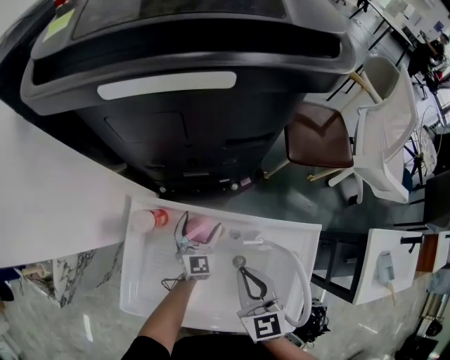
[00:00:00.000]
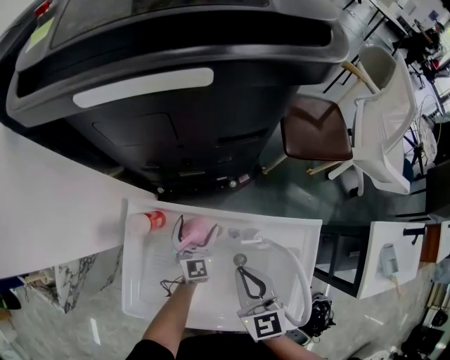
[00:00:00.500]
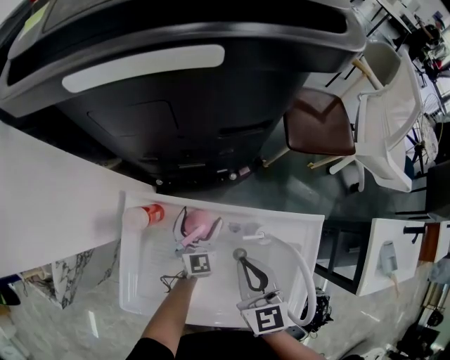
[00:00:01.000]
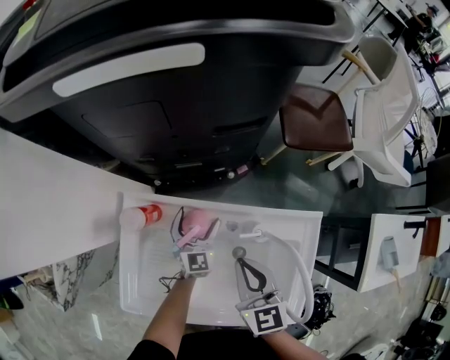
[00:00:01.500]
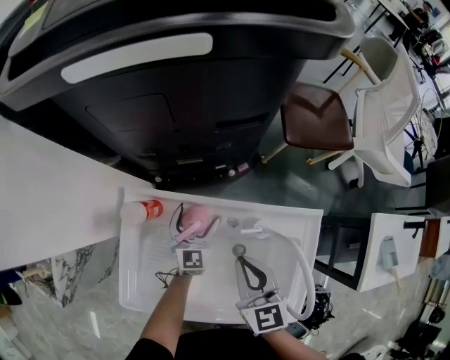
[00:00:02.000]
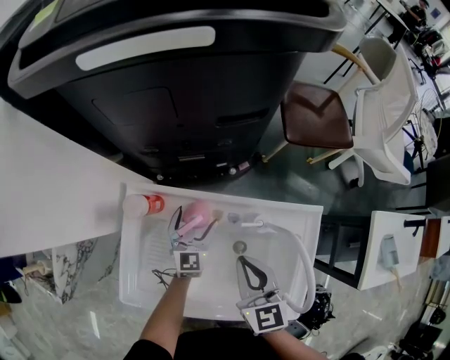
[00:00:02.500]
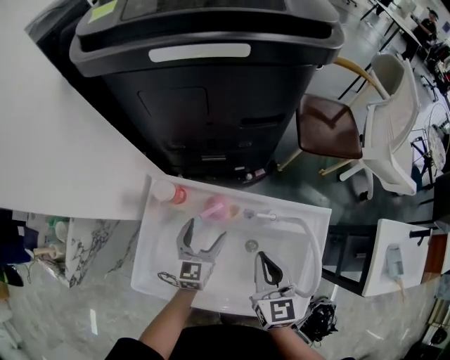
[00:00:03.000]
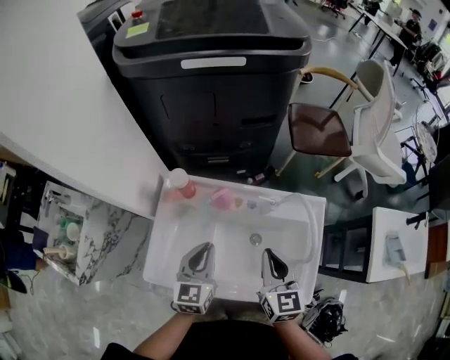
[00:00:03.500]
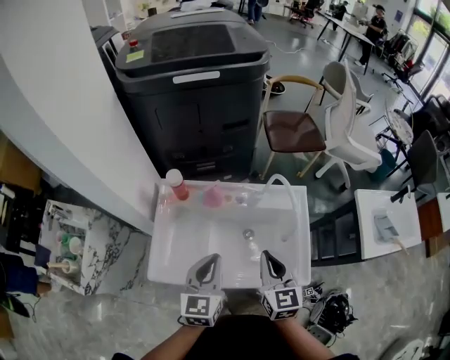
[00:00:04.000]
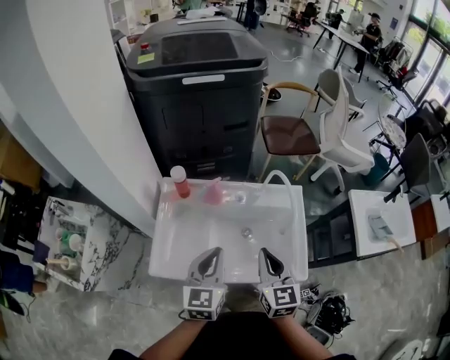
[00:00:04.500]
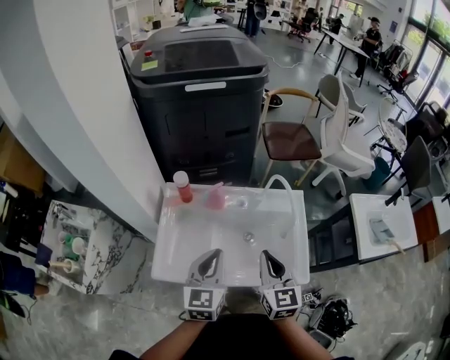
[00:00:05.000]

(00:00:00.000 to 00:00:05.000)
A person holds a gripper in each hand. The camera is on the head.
00:00:00.000 - 00:00:02.500: The grippers move only a little.
00:00:02.500 - 00:00:05.000: The right gripper goes approximately 25 cm backward and upward, while the left gripper heads backward and upward, covering roughly 40 cm, and closes its fingers.

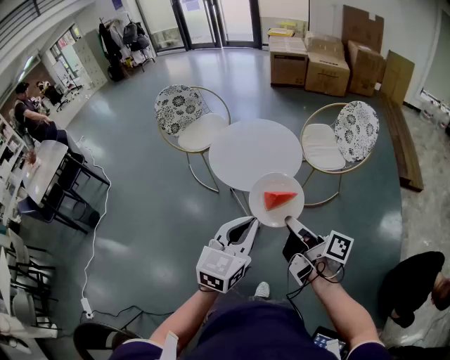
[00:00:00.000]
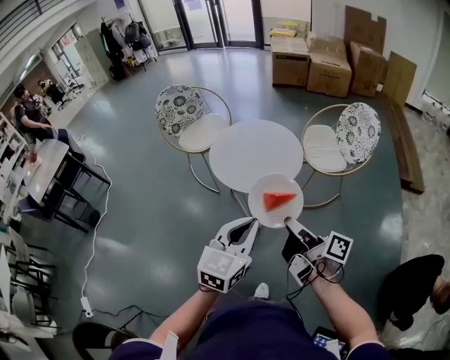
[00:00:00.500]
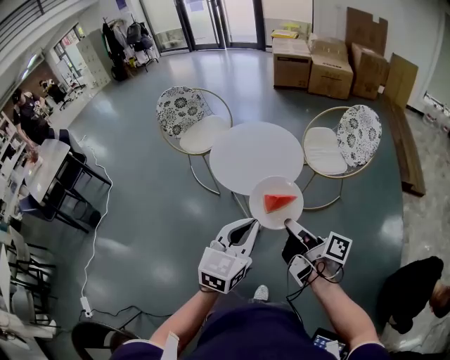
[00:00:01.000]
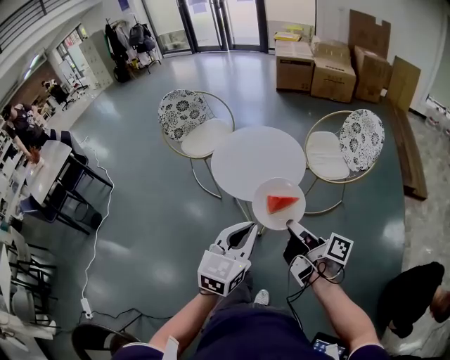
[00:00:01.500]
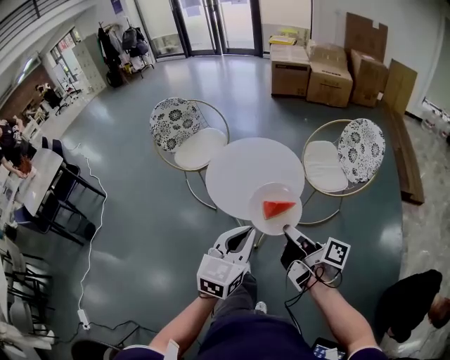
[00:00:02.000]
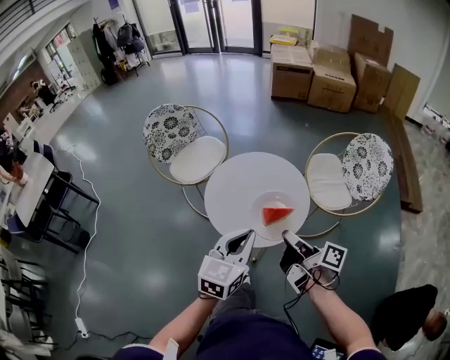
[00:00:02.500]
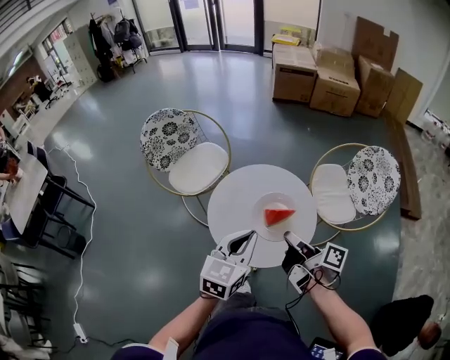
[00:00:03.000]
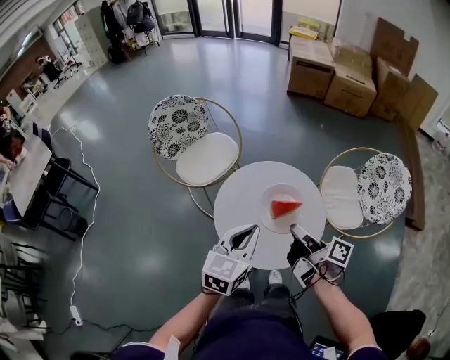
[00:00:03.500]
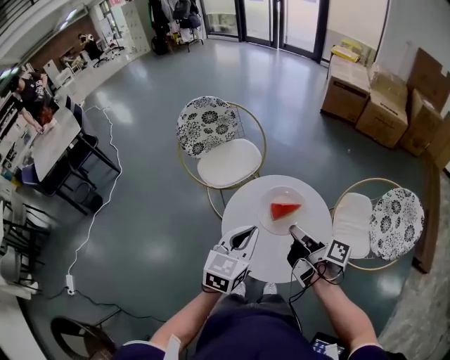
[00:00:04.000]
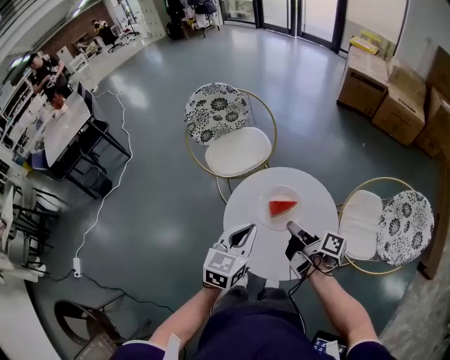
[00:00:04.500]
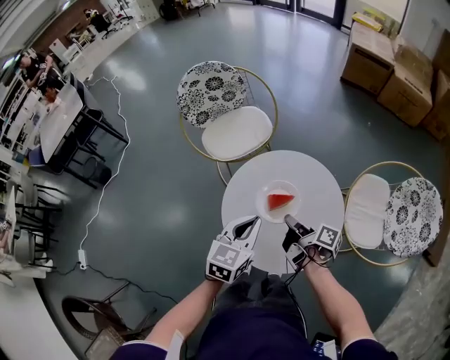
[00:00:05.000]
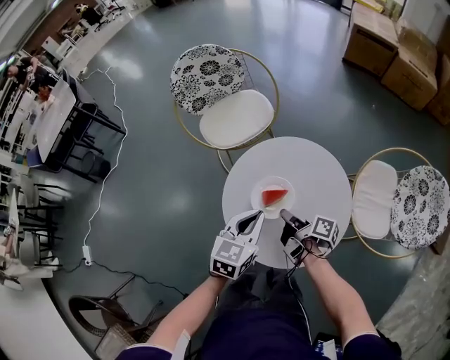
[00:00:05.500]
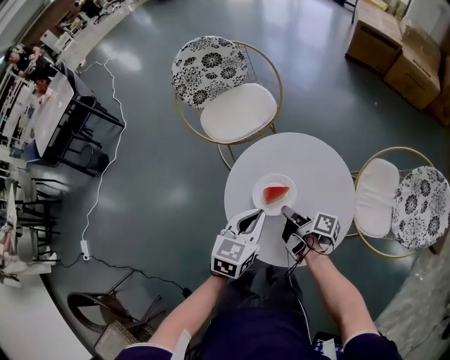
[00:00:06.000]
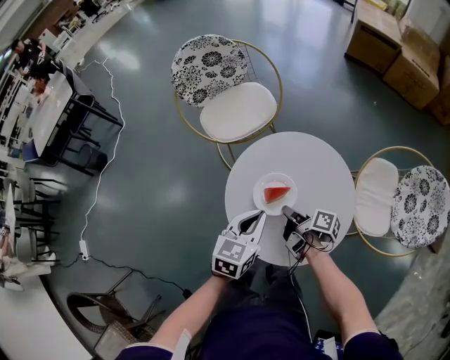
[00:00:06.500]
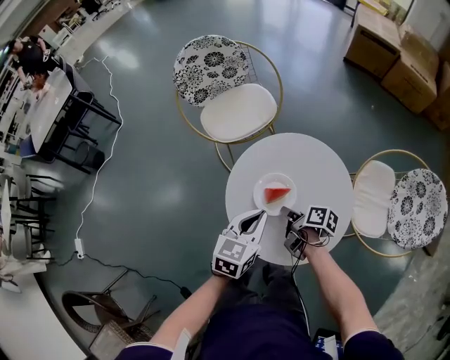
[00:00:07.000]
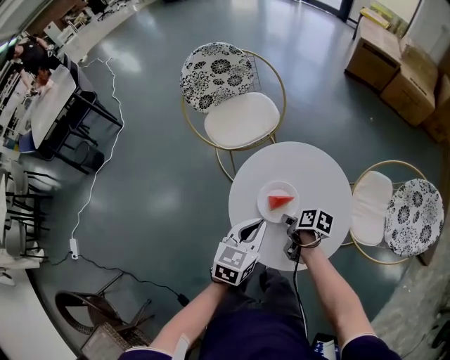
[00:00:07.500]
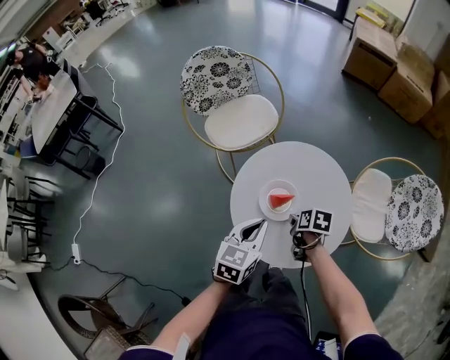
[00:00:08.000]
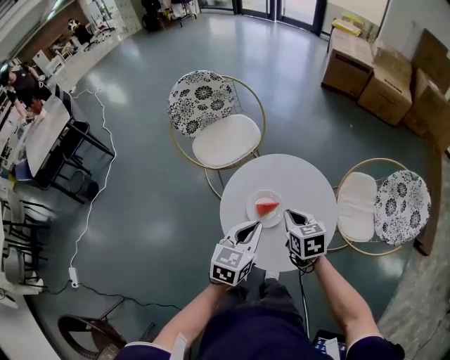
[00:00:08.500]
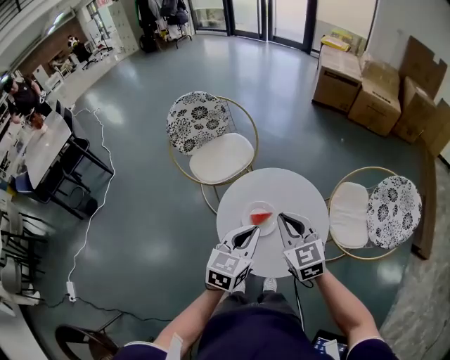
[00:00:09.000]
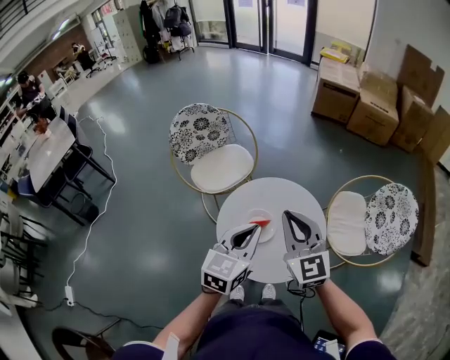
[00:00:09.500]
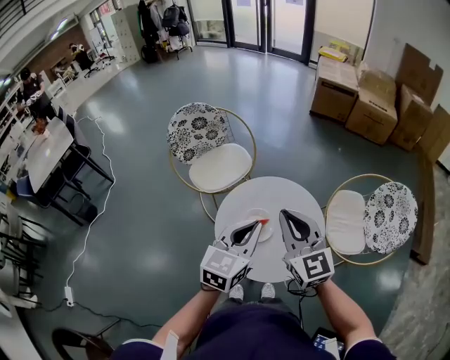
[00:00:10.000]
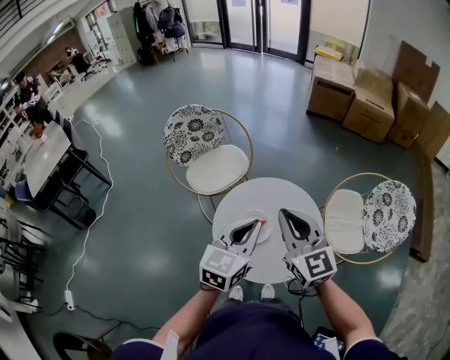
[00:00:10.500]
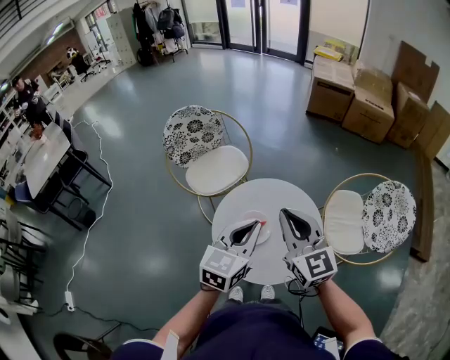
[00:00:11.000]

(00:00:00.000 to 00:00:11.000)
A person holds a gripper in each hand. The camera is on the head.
00:00:00.000 - 00:00:02.000: The left gripper changes place by some 10 cm.
00:00:02.000 - 00:00:03.500: The left gripper moves some 25 cm.
00:00:03.500 - 00:00:05.500: The left gripper travels downward by about 10 cm.
00:00:07.500 - 00:00:09.000: The left gripper heads upward, covering about 10 cm.
00:00:09.000 - 00:00:11.000: The left gripper moves upward, approximately 5 cm.

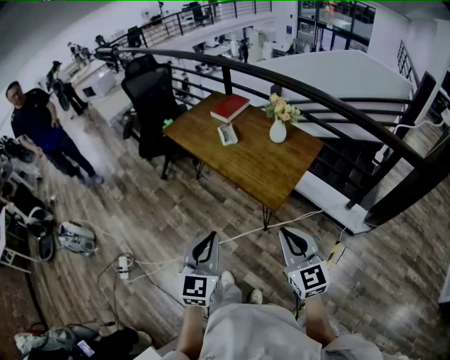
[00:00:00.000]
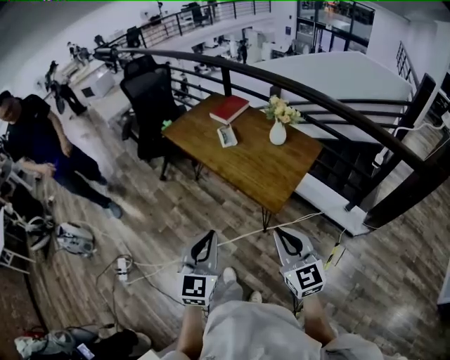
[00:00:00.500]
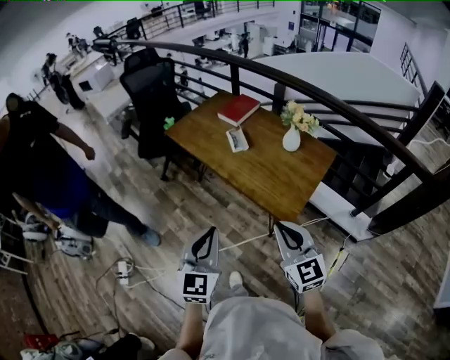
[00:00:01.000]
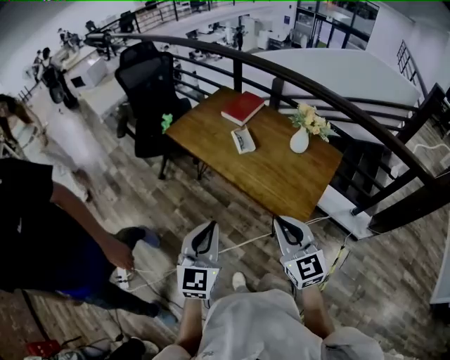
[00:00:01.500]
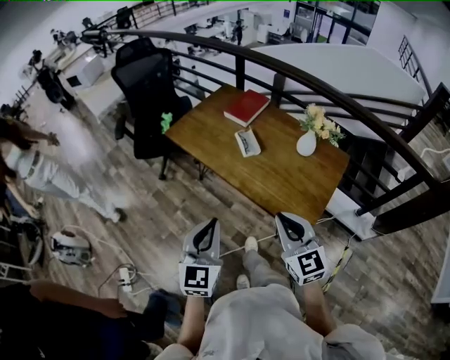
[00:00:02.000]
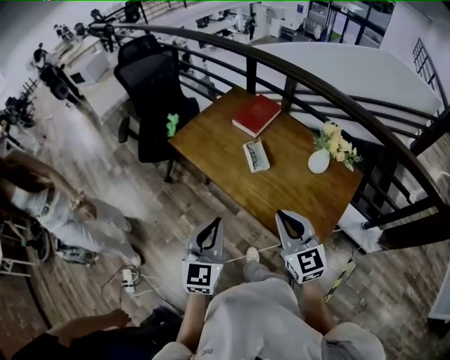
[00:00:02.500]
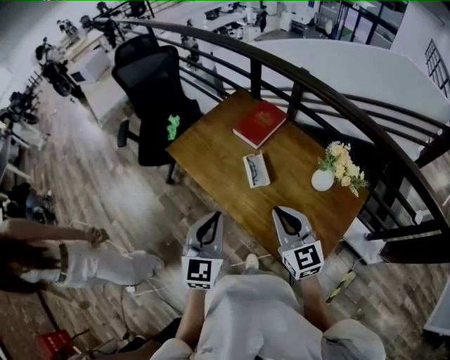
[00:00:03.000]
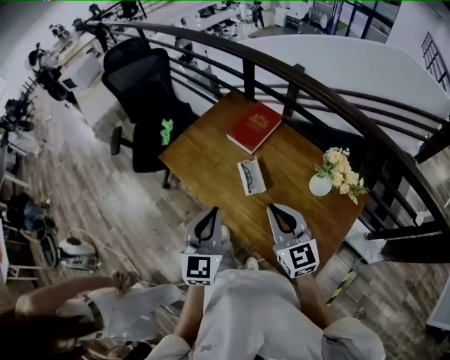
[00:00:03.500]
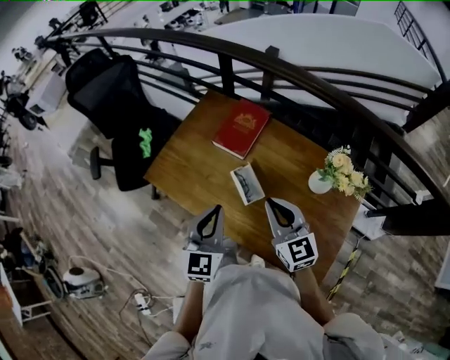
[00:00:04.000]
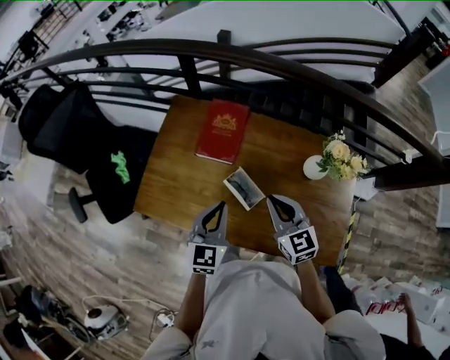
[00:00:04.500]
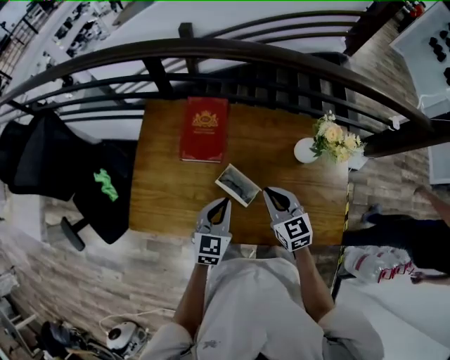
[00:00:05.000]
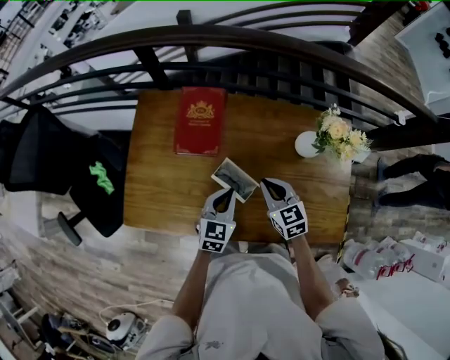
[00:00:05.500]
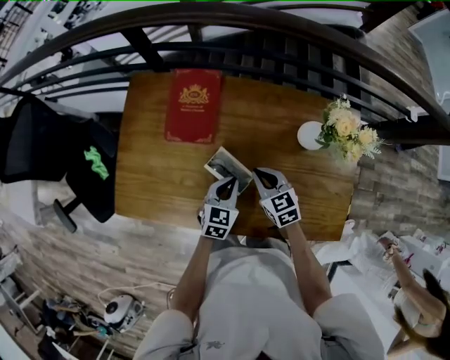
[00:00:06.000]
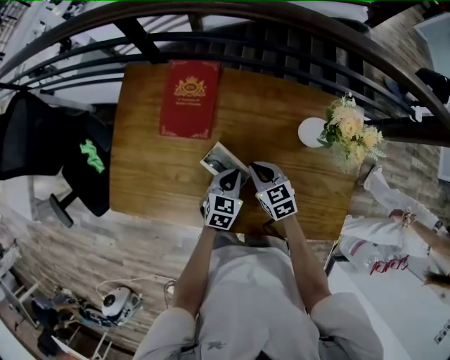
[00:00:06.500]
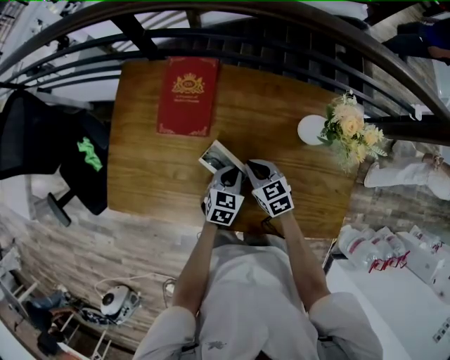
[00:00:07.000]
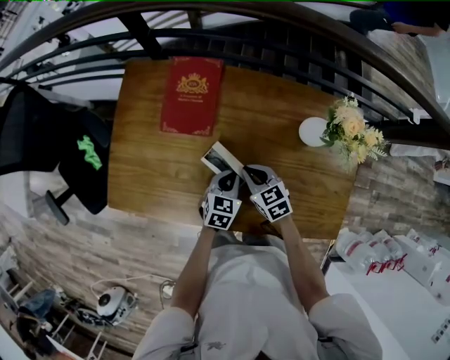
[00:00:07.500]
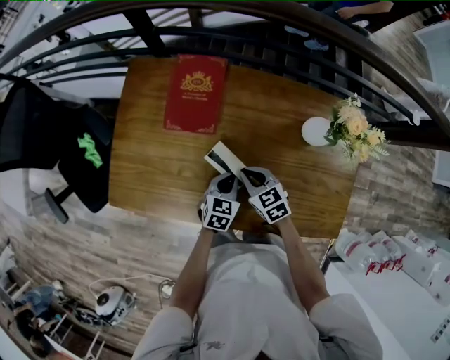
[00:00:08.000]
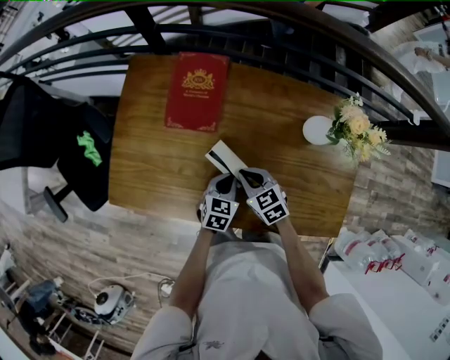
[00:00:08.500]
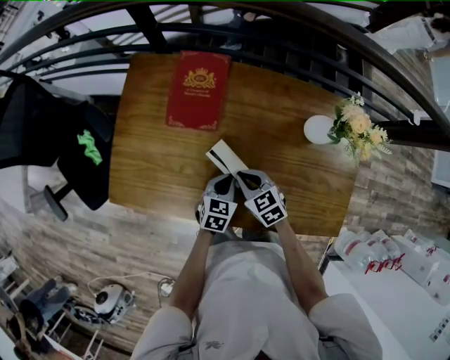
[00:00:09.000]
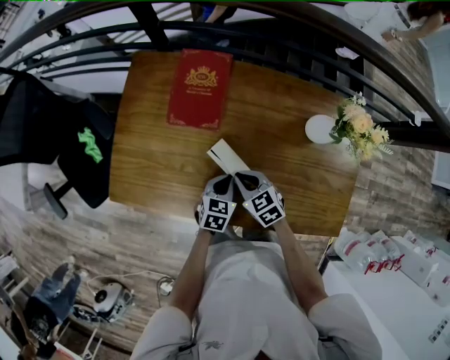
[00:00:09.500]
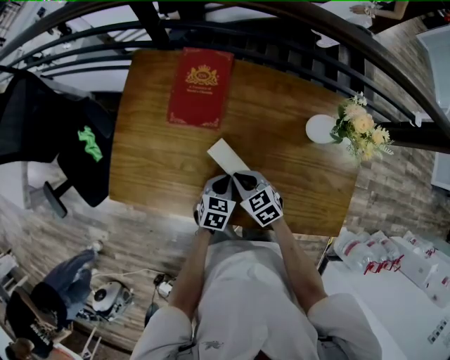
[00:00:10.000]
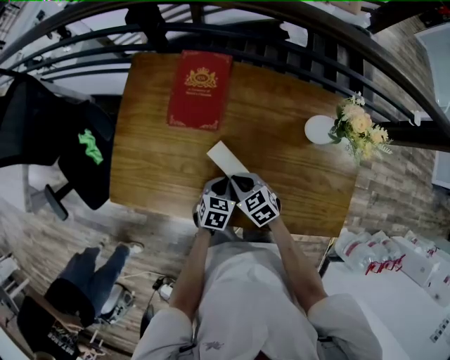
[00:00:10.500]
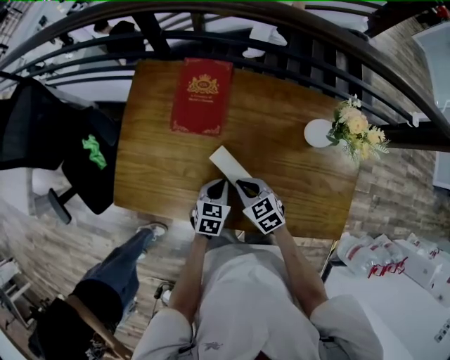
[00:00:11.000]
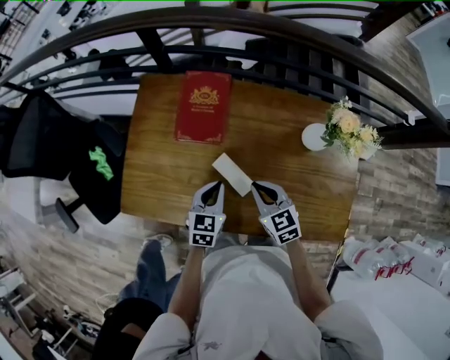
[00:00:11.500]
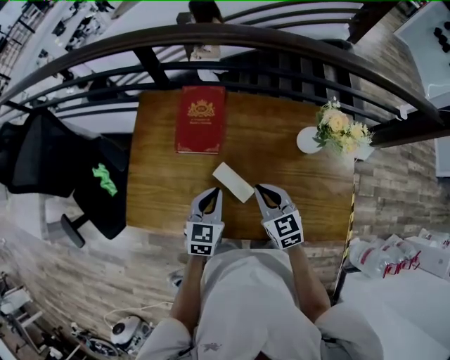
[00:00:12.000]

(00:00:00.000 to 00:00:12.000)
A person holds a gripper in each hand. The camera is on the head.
00:00:00.000 - 00:00:02.000: Both grippers move forward and to the left, approximately 30 cm.
00:00:02.000 - 00:00:04.000: Both grippers travel together forward, some 35 cm.
00:00:04.000 - 00:00:06.000: Both grippers move downward, roughly 25 cm. The right gripper changes its angle by roughly 30 degrees, while the left gripper swivels some 40 degrees.
00:00:06.000 - 00:00:08.000: The right gripper changes place by some 5 cm.
00:00:08.000 - 00:00:10.000: The grippers make only small movements.
00:00:10.000 - 00:00:12.000: The grippers both shift upward by about 15 cm. The left gripper changes its angle by some 20 degrees. The right gripper turns by some 30 degrees.
